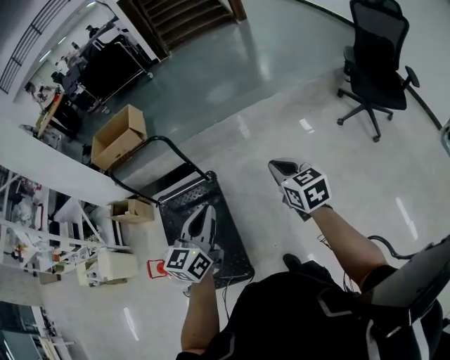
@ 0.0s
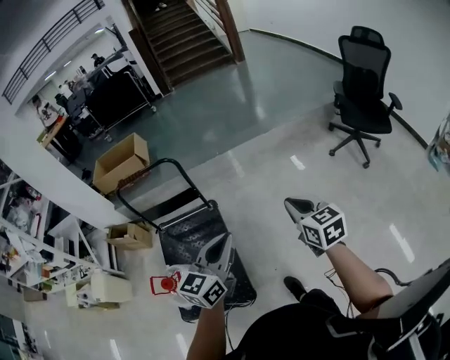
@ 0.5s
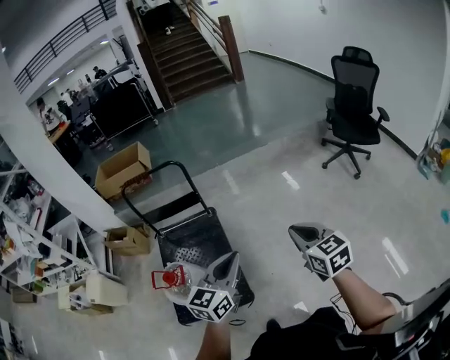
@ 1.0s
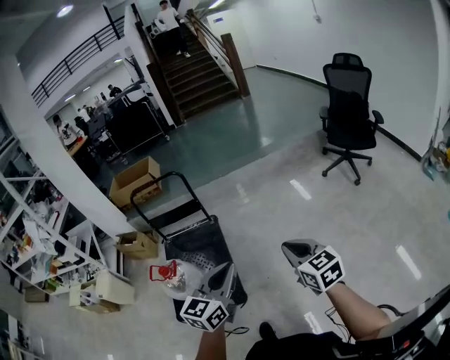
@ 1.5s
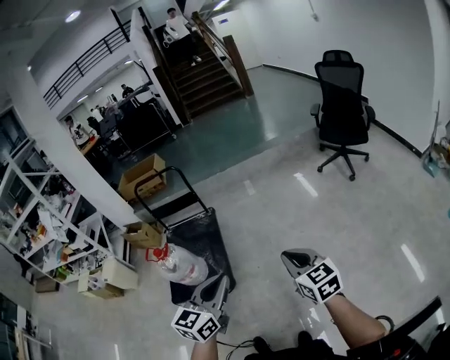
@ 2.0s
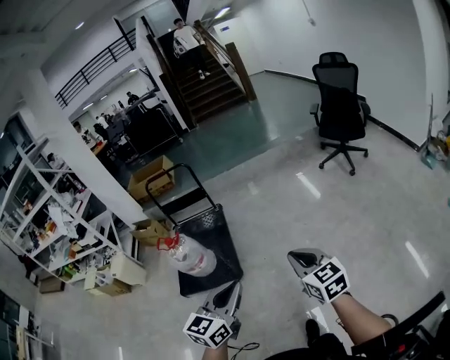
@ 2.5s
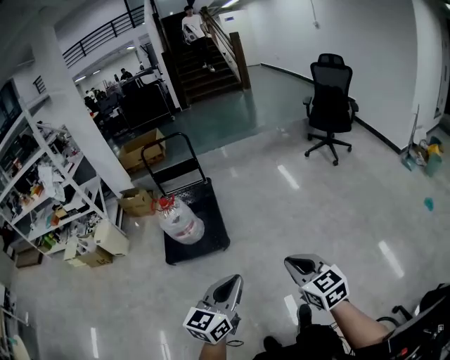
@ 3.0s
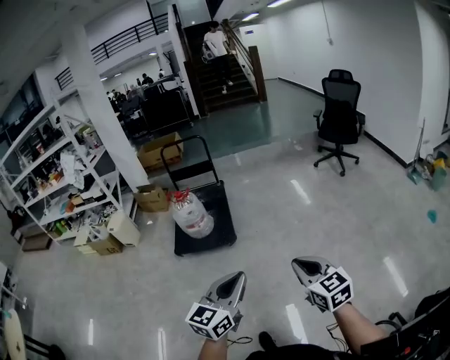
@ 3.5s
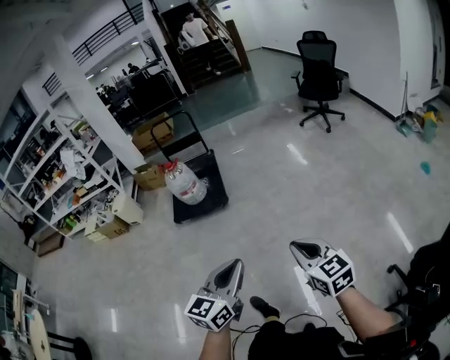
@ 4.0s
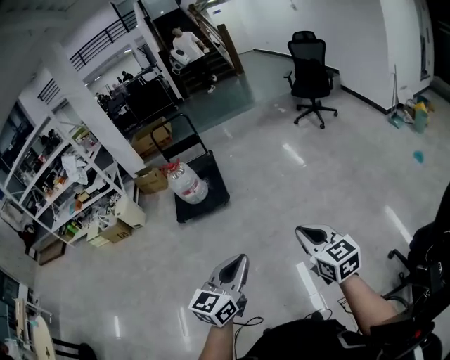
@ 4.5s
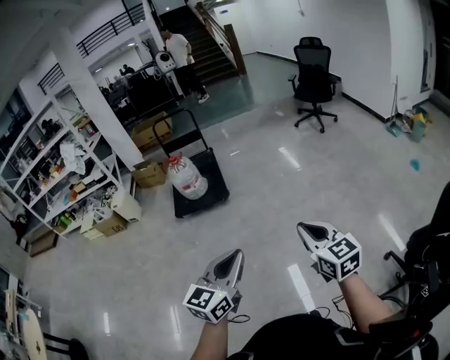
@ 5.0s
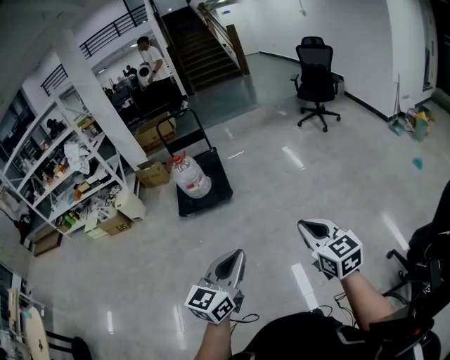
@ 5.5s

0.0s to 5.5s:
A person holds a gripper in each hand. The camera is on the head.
0.0s to 2.0s: The pair of grippers is taken backward, about 60 cm.
2.0s to 3.5s: The pair of grippers is taken backward, approximately 50 cm.
3.5s to 5.5s: The two grippers go approximately 30 cm backward.

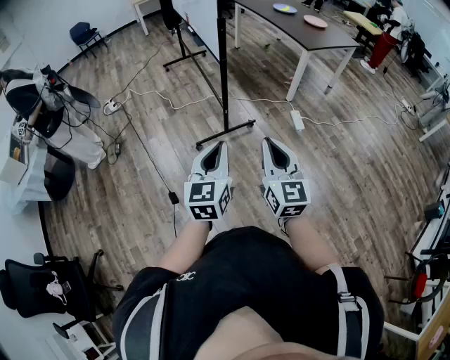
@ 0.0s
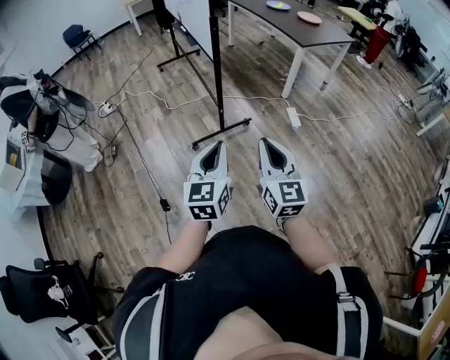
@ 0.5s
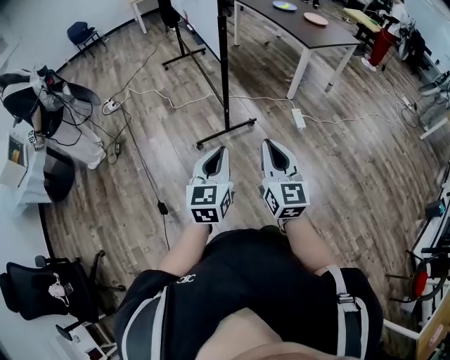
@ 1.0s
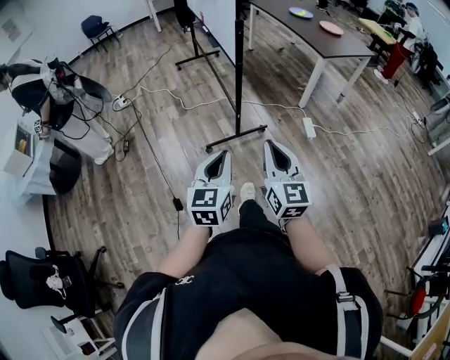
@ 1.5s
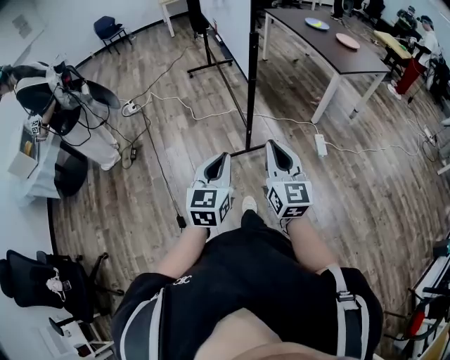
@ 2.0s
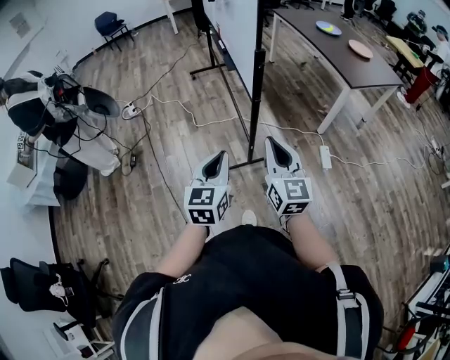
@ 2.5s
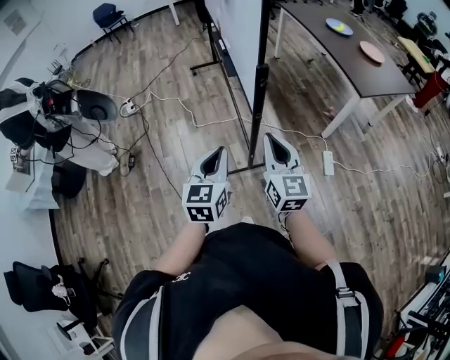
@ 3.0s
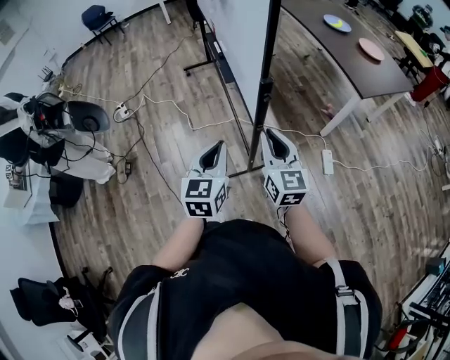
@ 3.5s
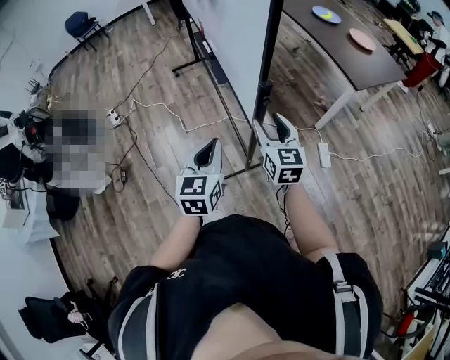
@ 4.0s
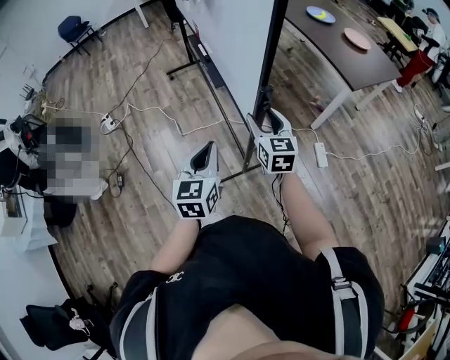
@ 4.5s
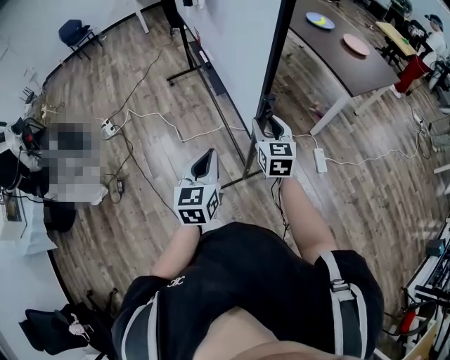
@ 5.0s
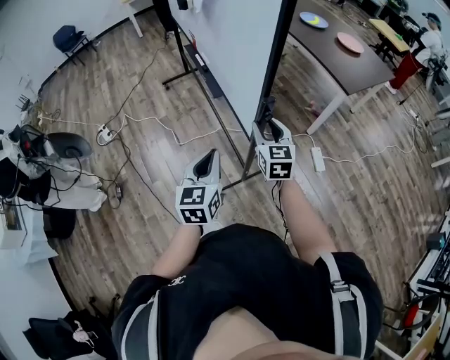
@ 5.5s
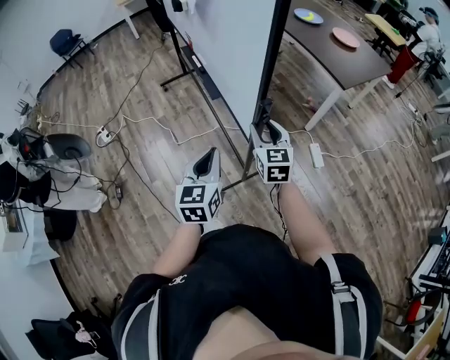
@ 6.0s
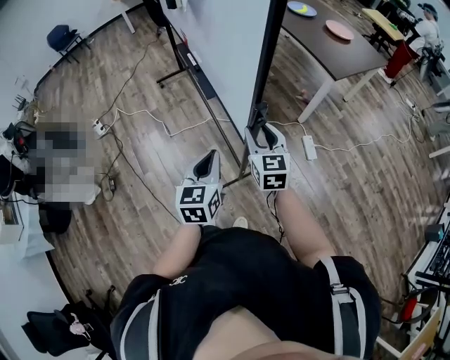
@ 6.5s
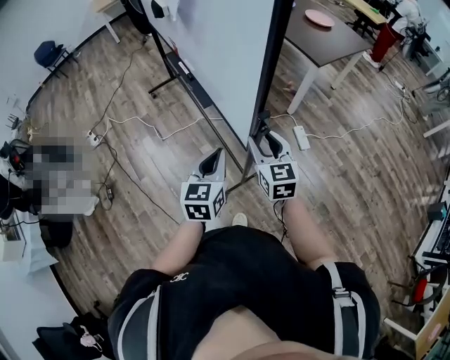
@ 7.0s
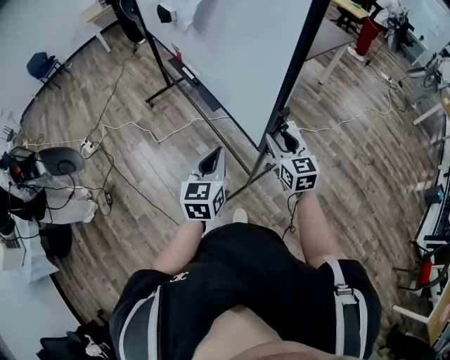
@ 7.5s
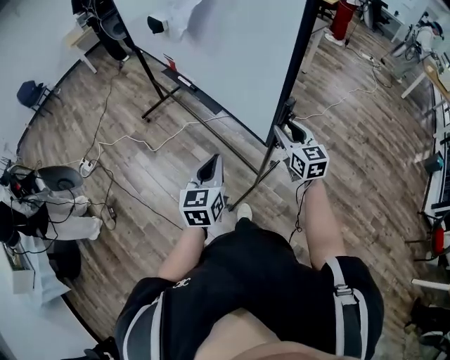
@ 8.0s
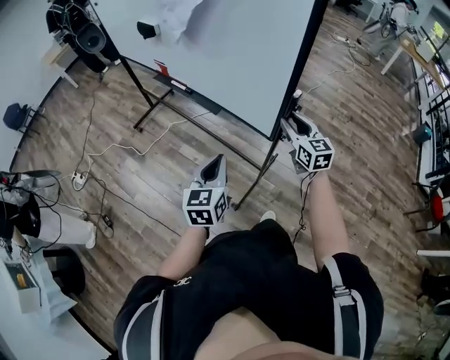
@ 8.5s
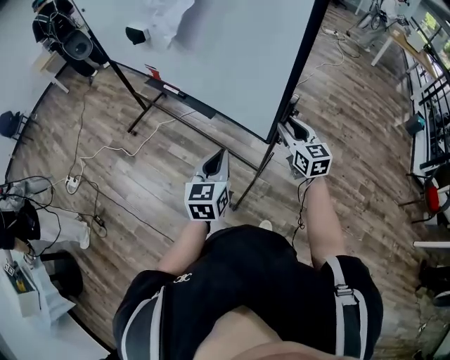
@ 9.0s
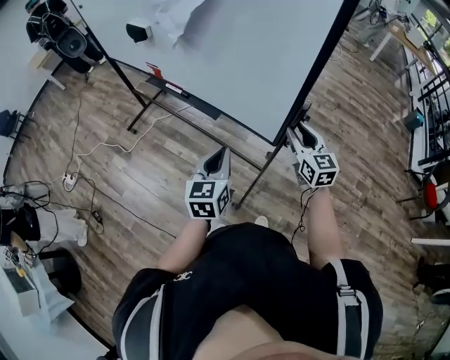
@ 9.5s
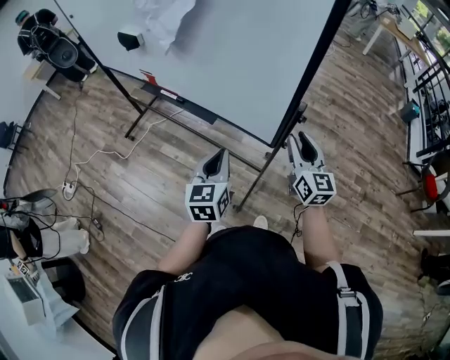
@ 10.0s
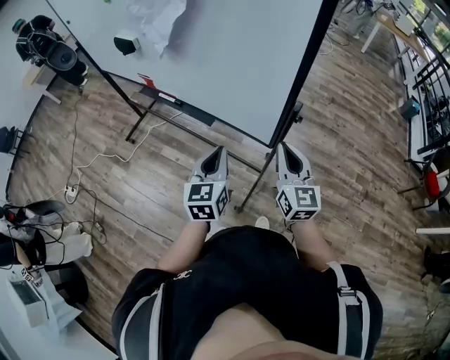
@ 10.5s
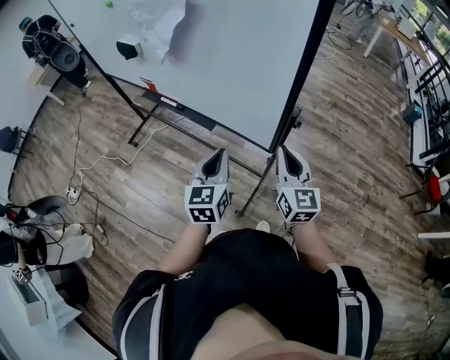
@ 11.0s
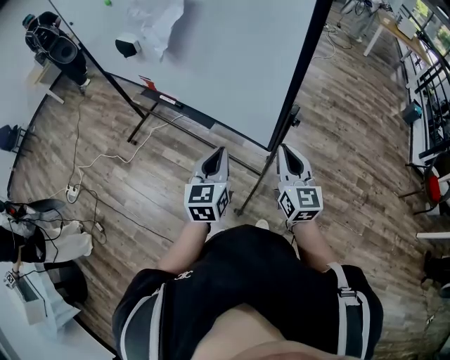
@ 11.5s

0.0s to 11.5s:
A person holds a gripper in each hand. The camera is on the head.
0.0s to 2.0s: The left gripper is displaced forward and to the left by roughly 15 cm. The right gripper travels forward by approximately 15 cm.
2.0s to 4.0s: The two grippers go roughly 40 cm forward. The right gripper opens.
4.0s to 6.0s: The grippers stay close to where they were, moving slightly.
6.0s to 7.5s: The two grippers go some 20 cm backward and to the right.
7.5s to 9.5s: Both grippers travel together to the right and backward, approximately 30 cm. The right gripper turns by roughly 20 degrees.
9.5s to 11.5s: The right gripper moves backward, some 10 cm, and closes up.

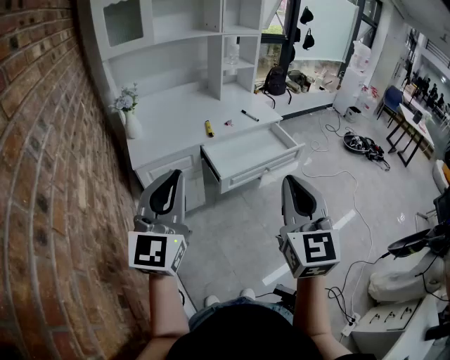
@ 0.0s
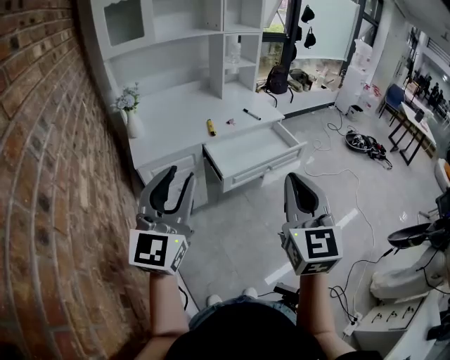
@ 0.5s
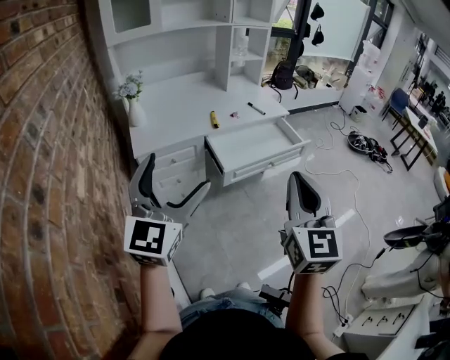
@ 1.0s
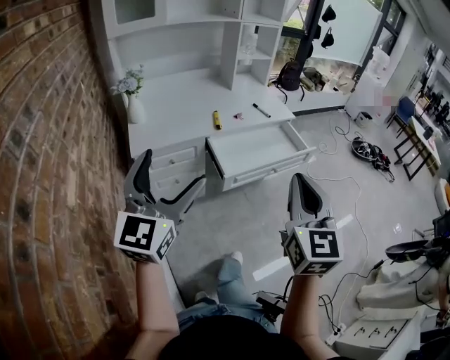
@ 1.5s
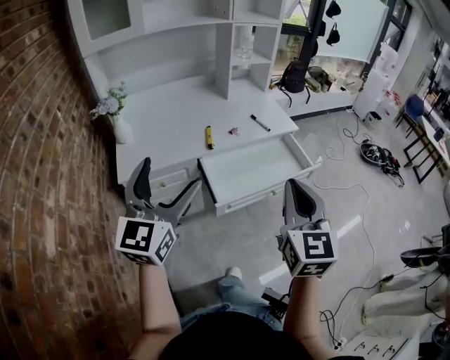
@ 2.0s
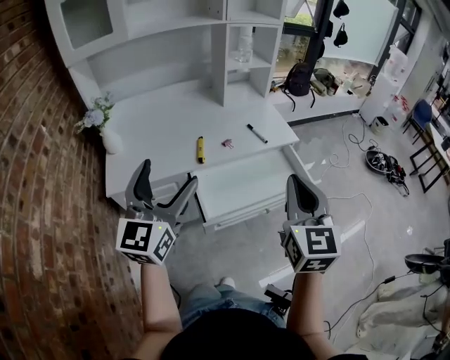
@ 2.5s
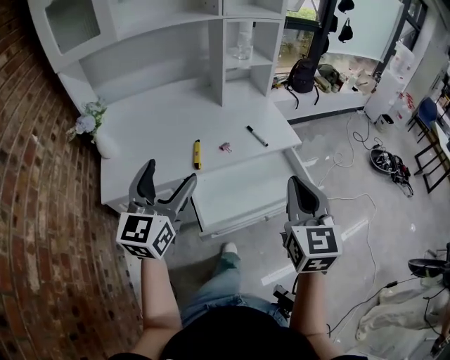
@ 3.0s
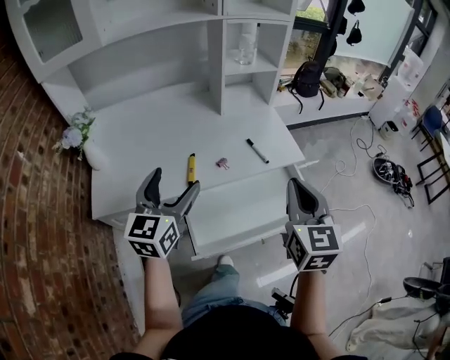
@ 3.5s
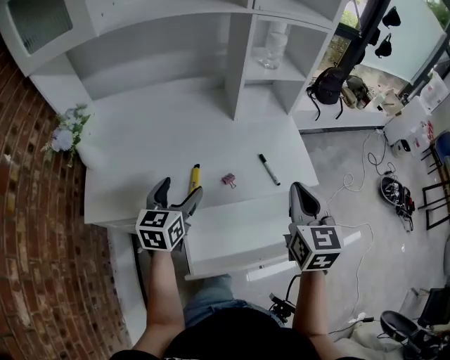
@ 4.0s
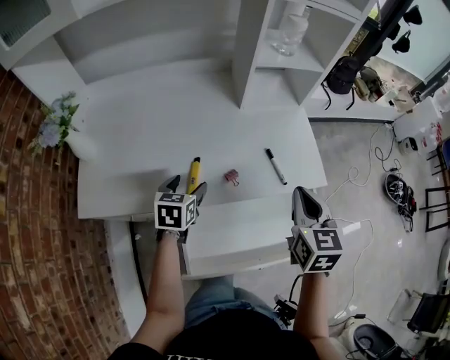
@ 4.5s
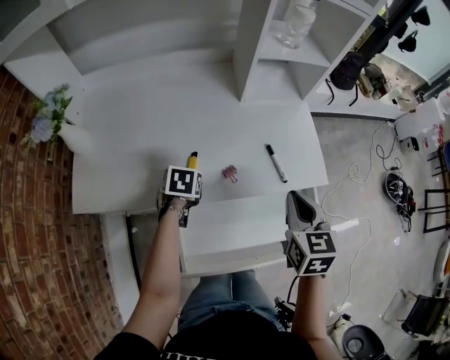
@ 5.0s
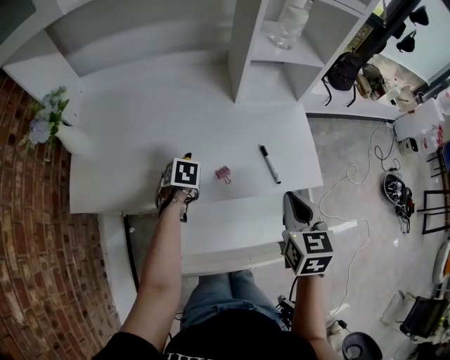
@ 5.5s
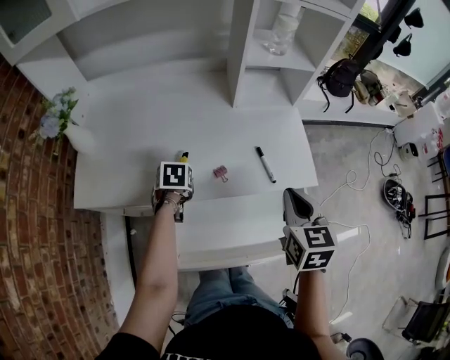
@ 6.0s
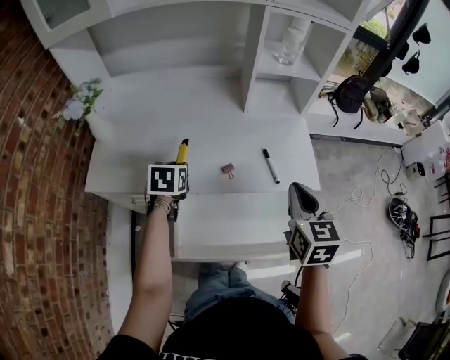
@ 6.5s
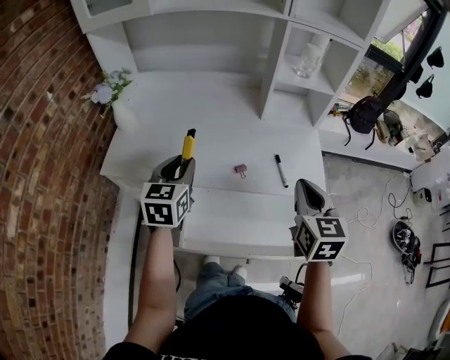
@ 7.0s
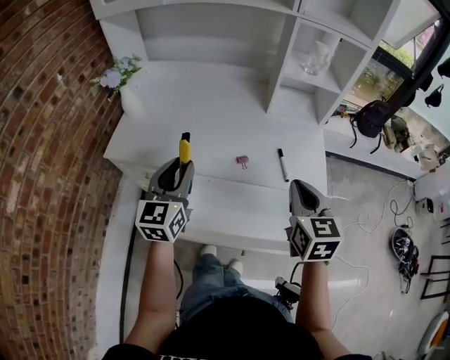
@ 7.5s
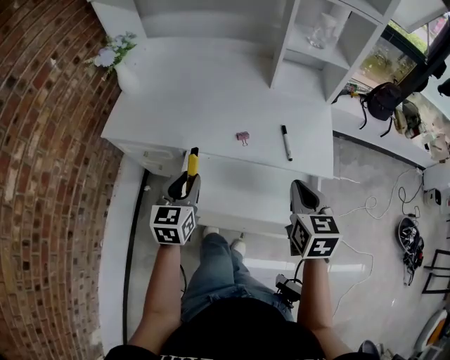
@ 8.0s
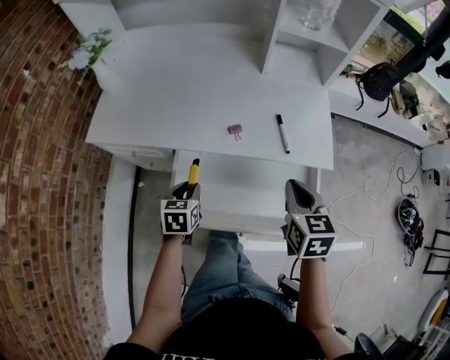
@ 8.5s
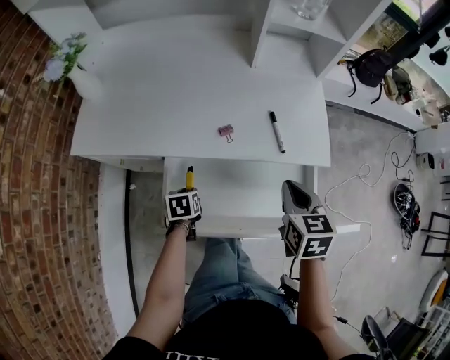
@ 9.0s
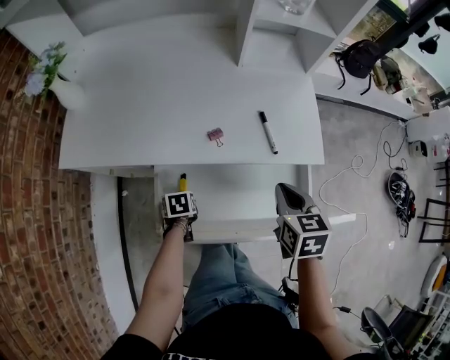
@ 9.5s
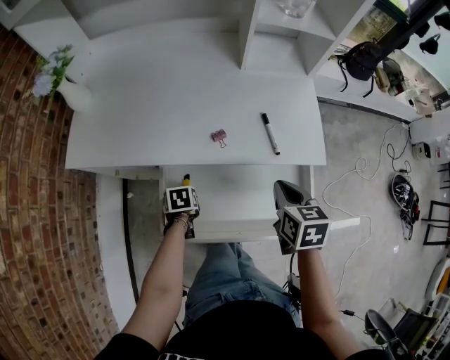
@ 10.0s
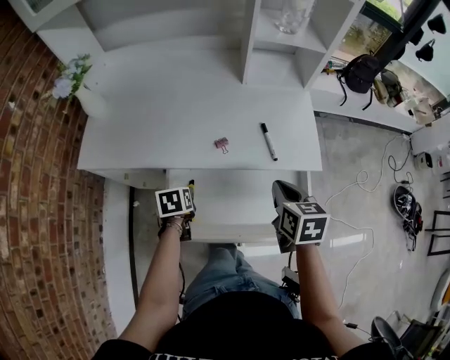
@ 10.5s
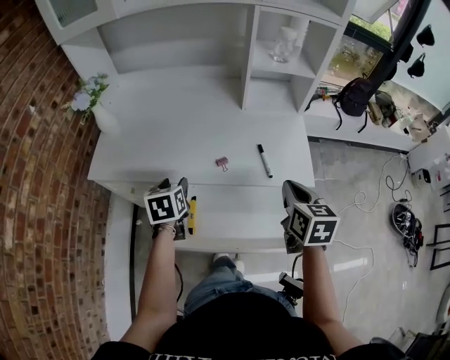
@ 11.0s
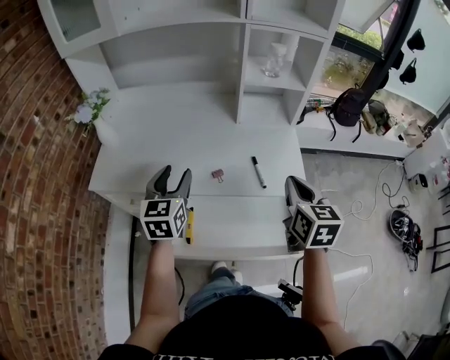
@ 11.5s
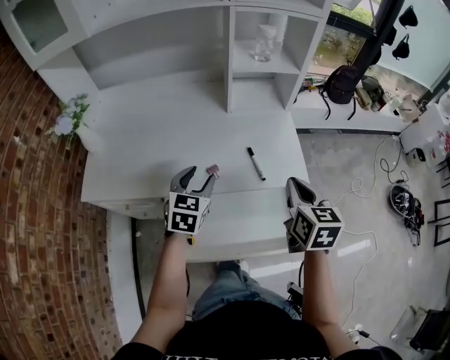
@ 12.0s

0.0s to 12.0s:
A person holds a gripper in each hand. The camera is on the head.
0.0s to 2.0s: Both grippers travel together forward, some 20 cm. The left gripper opens its fingers.
2.0s to 4.0s: The right gripper is displaced forward by about 40 cm; the left gripper shifts approximately 40 cm forward and downward, and changes its angle by roughly 30 degrees.
4.0s to 6.0s: The right gripper travels downward by approximately 5 cm. The left gripper heads downward, covering some 15 cm, angles its fingers downward, by some 40 degrees, and closes up.
6.0s to 8.0s: The right gripper goes some 5 cm backward, and goes upward and returns, some 5 cm each way. The left gripper shifts about 25 cm backward and upward, and tips its fingers upward by approximately 40 degrees.
8.0s to 10.0s: The right gripper heads downward, covering some 10 cm, while the left gripper goes some 25 cm downward, and tips its fingers downward by approximately 50 degrees.
10.0s to 12.0s: The right gripper shifts about 15 cm upward, and rotates about 20 degrees, while the left gripper moves upward, some 25 cm, and points its fingers approximately 40 degrees further upward.
